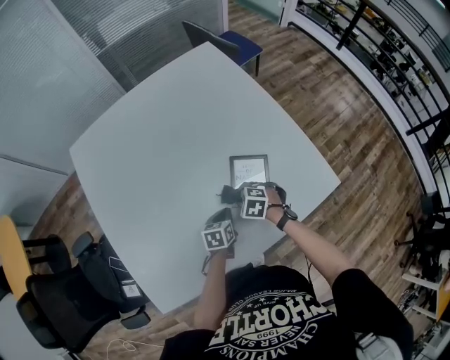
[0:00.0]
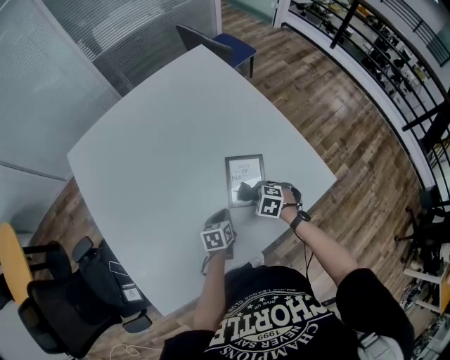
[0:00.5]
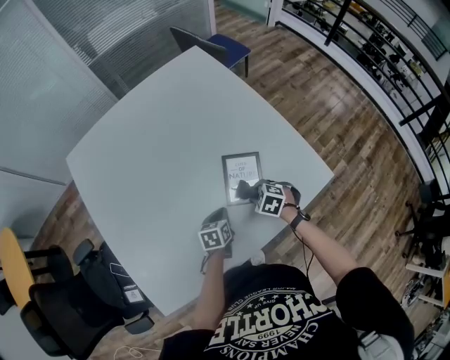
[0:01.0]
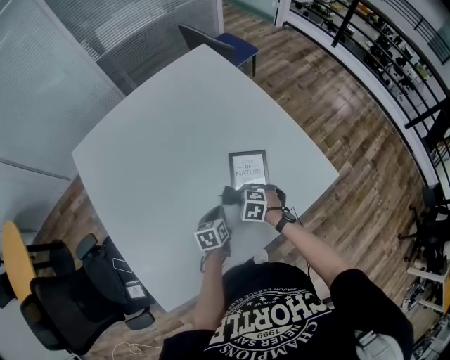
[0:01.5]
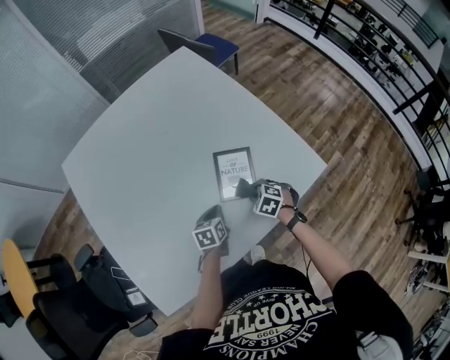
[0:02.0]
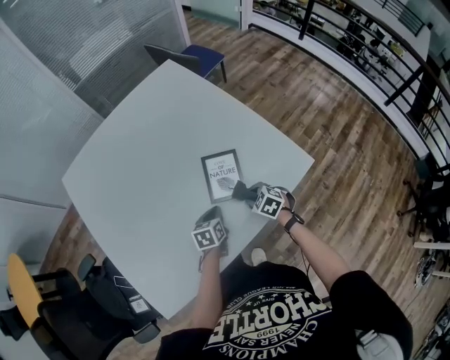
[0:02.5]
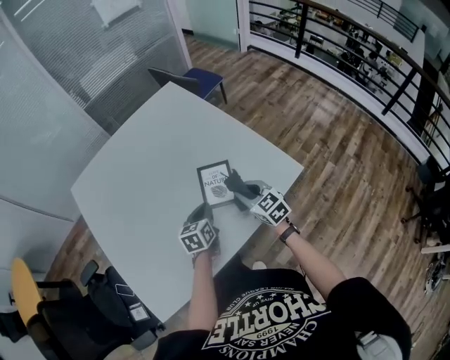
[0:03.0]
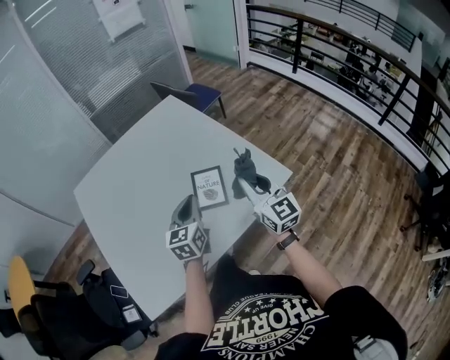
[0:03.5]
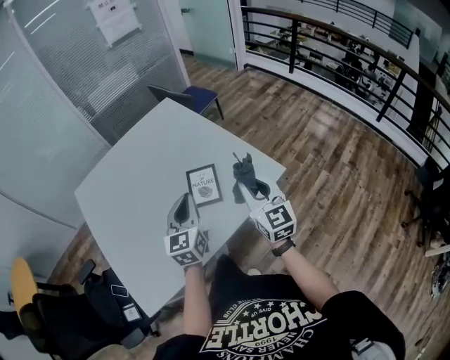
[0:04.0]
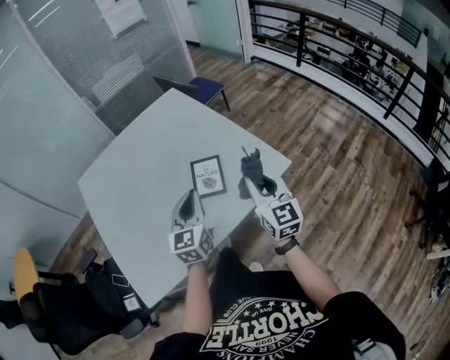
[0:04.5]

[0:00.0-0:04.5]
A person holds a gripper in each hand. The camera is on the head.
0:00.0 to 0:02.0: The right gripper goes left and right, some 10 cm each way, reversing 2 times.
0:02.0 to 0:04.5: The left gripper heads upward and backward, covering some 35 cm, and angles its fingers upward, by approximately 40 degrees; the right gripper shifts about 40 cm upward, backward and to the right, and tilts its fingers roughly 70 degrees upward.

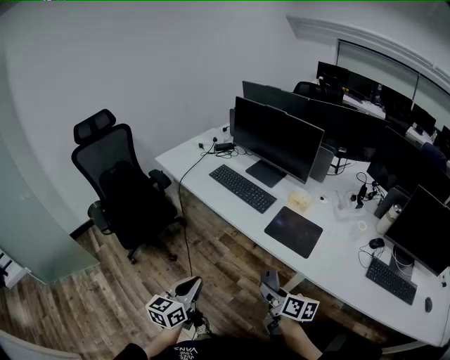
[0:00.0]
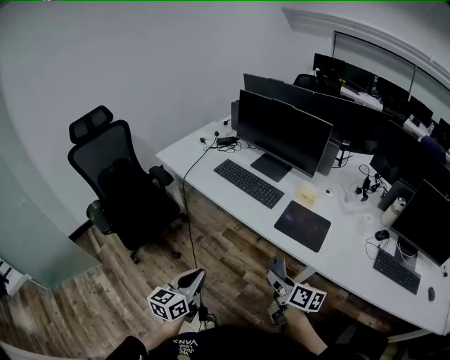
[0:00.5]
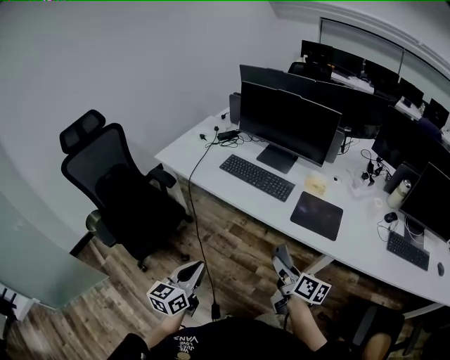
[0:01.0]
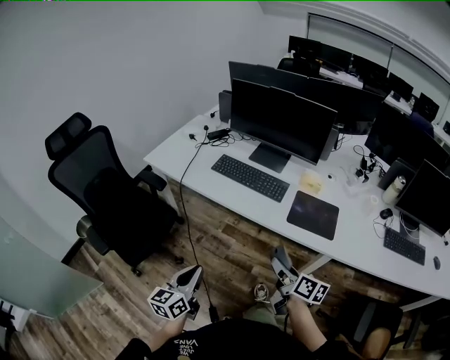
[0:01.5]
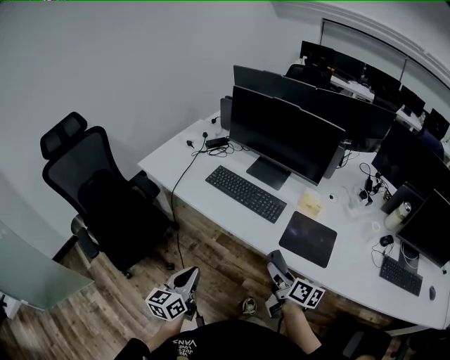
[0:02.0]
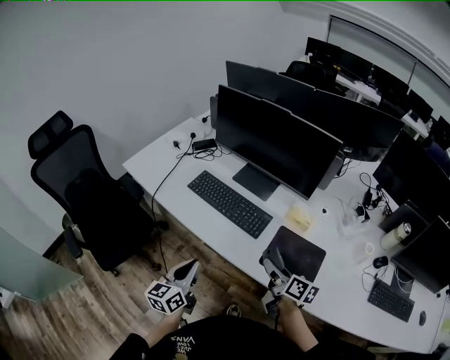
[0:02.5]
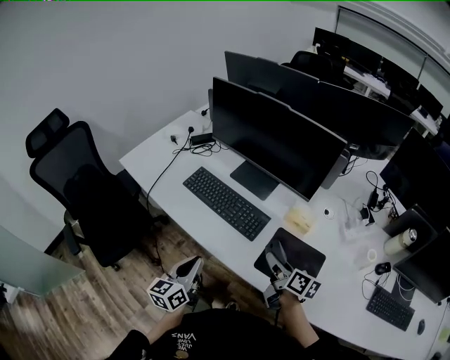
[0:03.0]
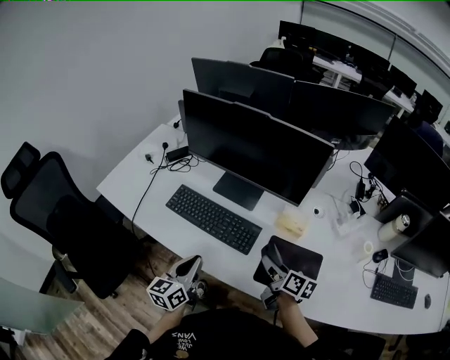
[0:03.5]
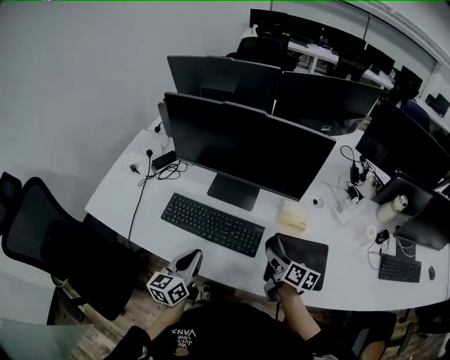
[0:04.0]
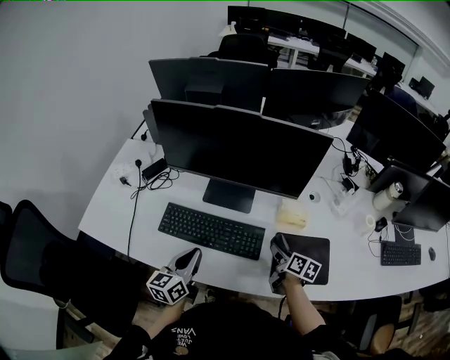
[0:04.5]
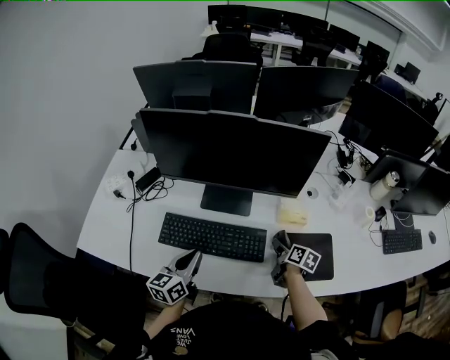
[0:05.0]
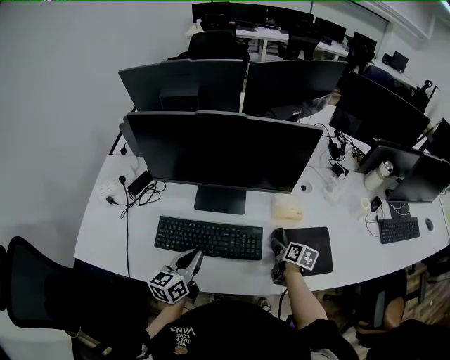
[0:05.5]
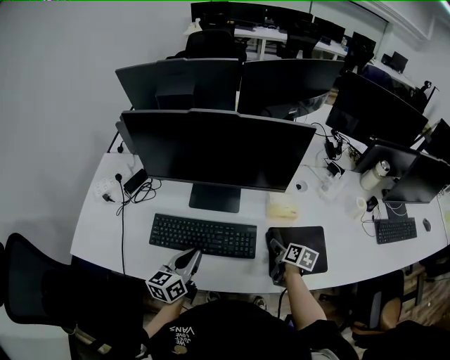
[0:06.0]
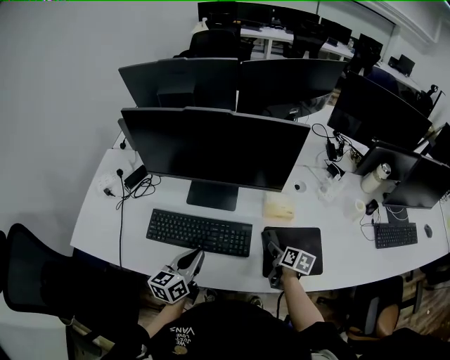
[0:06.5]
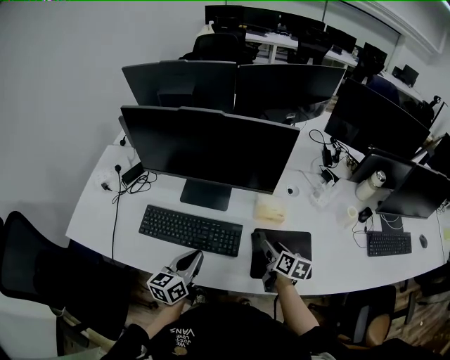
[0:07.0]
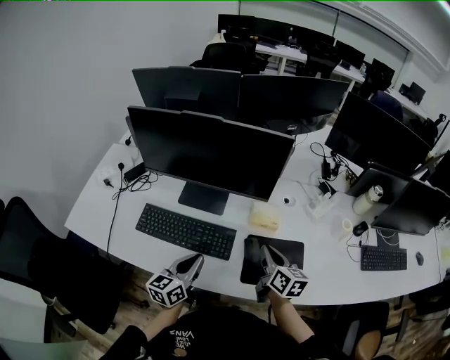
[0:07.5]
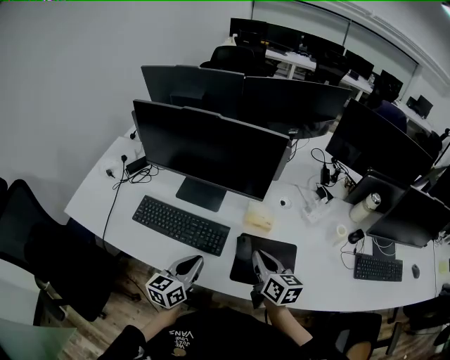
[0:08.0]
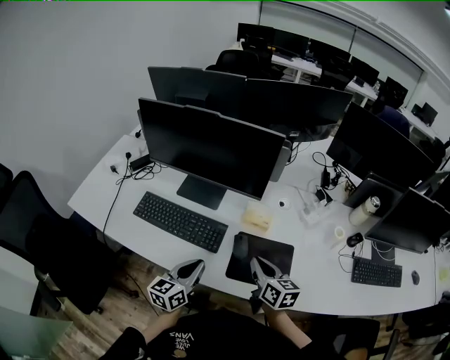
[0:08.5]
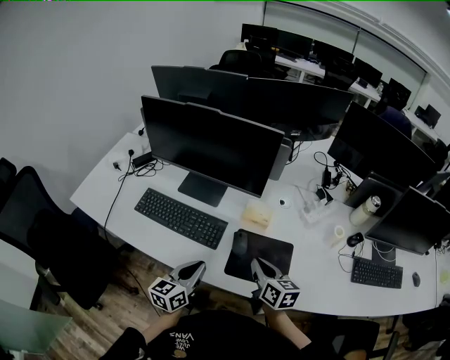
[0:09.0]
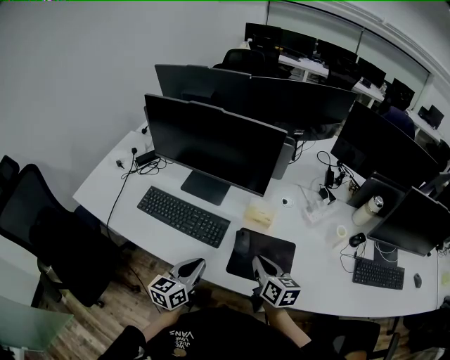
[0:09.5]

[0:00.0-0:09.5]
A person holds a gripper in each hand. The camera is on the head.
0:00.0 to 0:02.0: The left gripper is displaced forward and to the left by some 20 cm, while the right gripper moves forward, roughly 15 cm.
0:02.0 to 0:04.0: The left gripper shifts some 30 cm forward; the right gripper goes approximately 25 cm forward and to the right.
0:04.0 to 0:05.5: The right gripper is displaced downward by some 10 cm, and turns by about 30 degrees, while the left gripper heads forward, covering approximately 10 cm.
0:05.5 to 0:07.5: The left gripper heads to the right, covering some 10 cm. The right gripper moves upward, roughly 15 cm, rotates some 30 degrees, and closes up.
0:07.5 to 0:09.5: The left gripper shifts some 10 cm backward and to the right. Meanwhile the right gripper shifts some 5 cm backward.

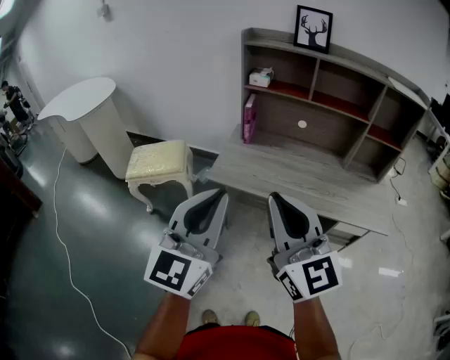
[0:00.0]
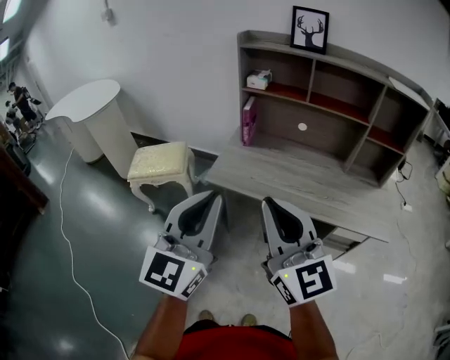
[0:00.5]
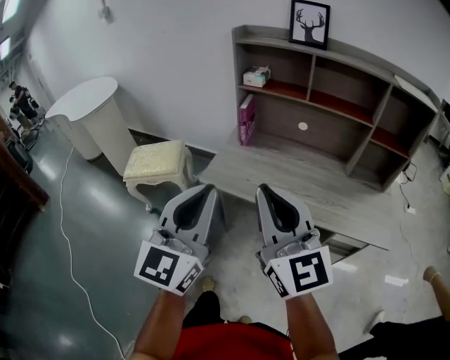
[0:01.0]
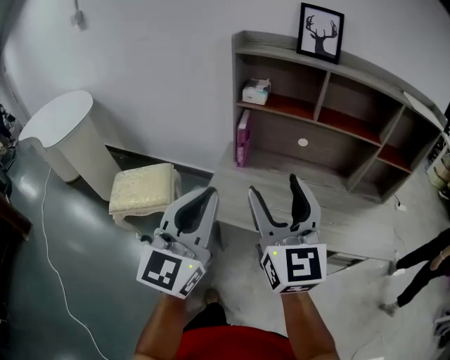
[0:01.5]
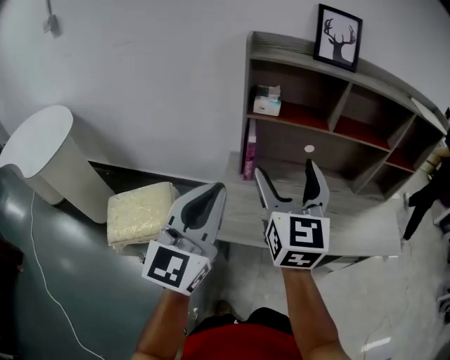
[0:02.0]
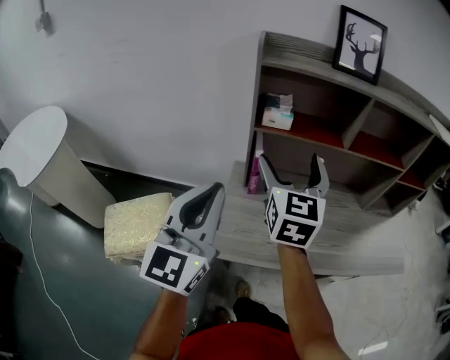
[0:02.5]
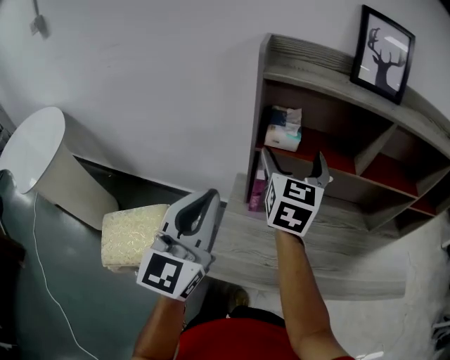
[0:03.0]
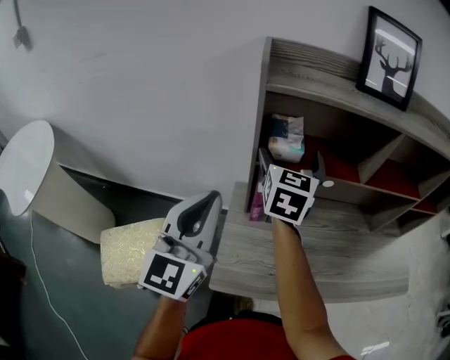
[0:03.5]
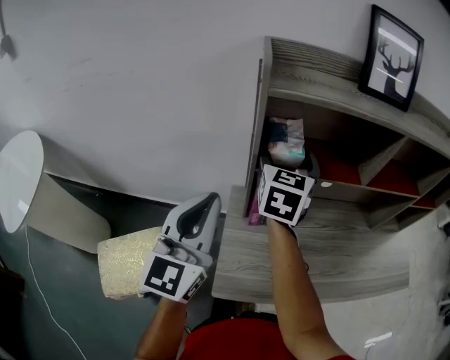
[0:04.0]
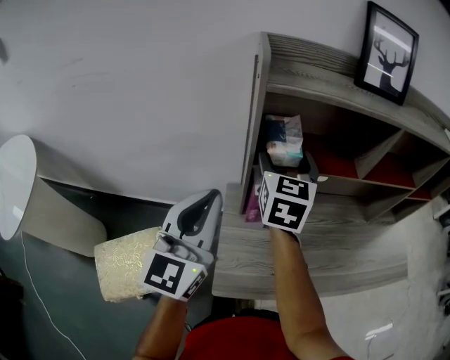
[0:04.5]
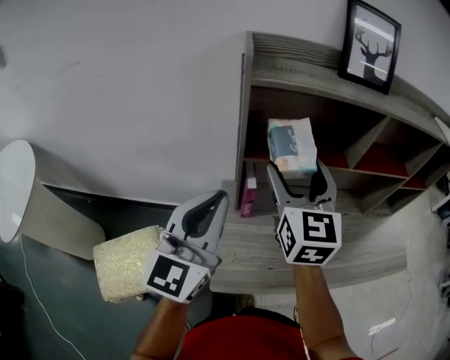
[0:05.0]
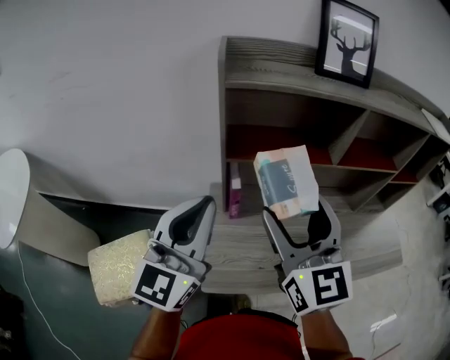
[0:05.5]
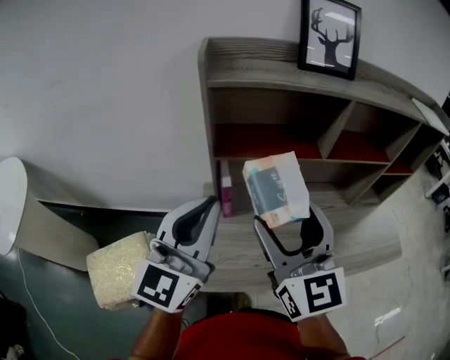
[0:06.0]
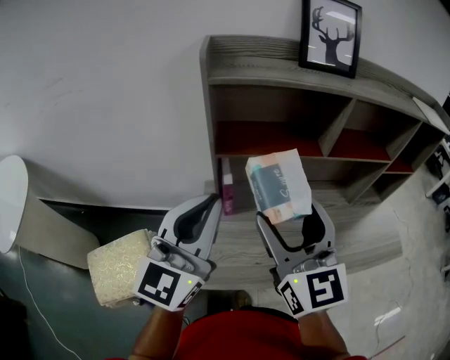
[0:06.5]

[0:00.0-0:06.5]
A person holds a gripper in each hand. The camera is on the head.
0:00.0 to 0:02.0: Both grippers travel together forward, some 35 cm. The right gripper turns by roughly 30 degrees, and opens its fingers.
0:02.0 to 0:04.5: Both grippers move forward, some 25 cm. The right gripper rotates about 20 degrees.
0:04.5 to 0:06.5: The right gripper goes about 20 cm backward and to the right, and rotates some 20 degrees, while the left gripper goes approximately 10 cm to the right.

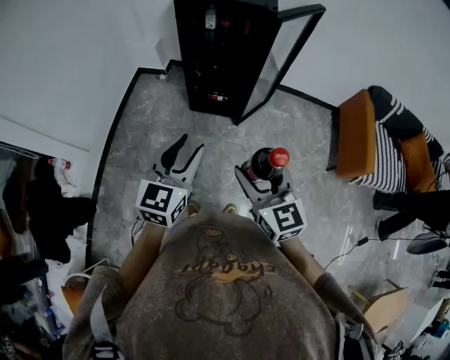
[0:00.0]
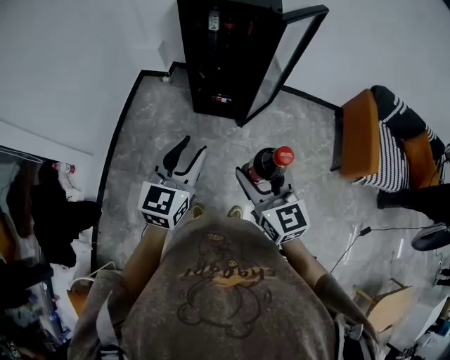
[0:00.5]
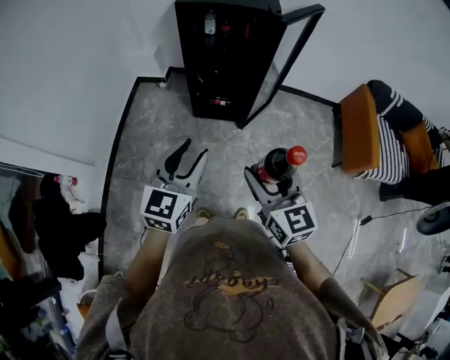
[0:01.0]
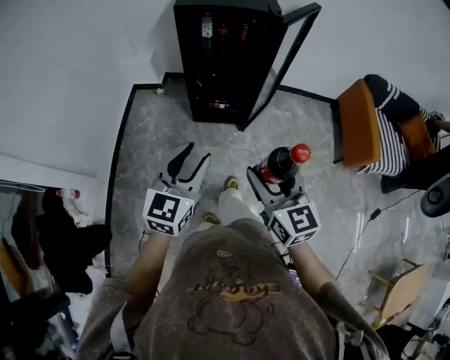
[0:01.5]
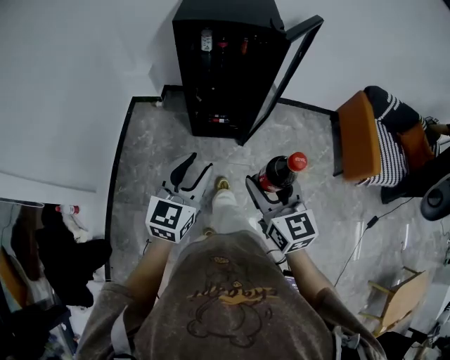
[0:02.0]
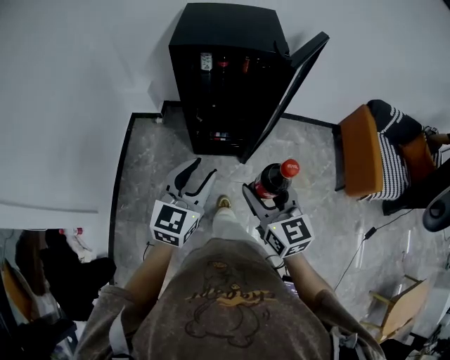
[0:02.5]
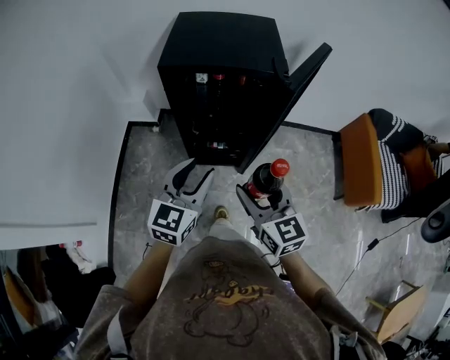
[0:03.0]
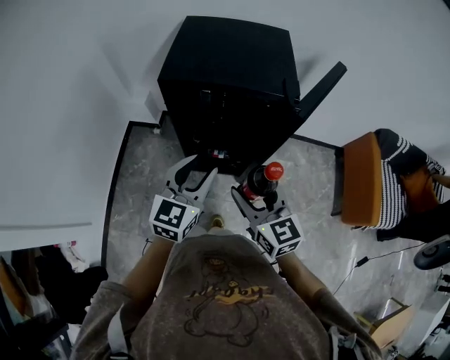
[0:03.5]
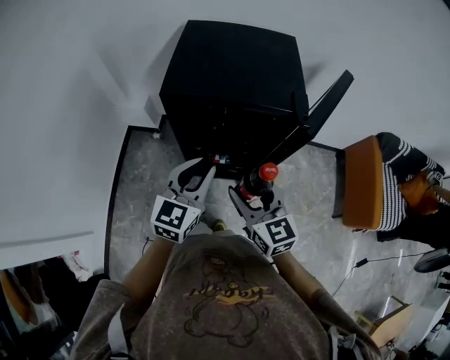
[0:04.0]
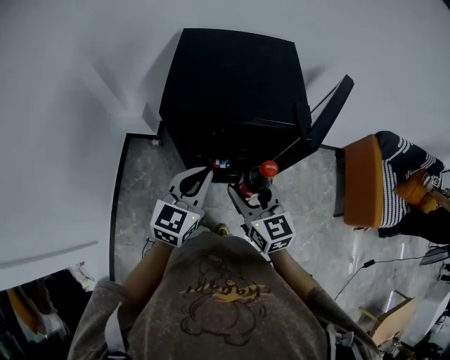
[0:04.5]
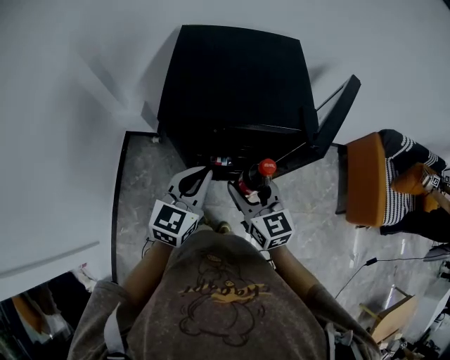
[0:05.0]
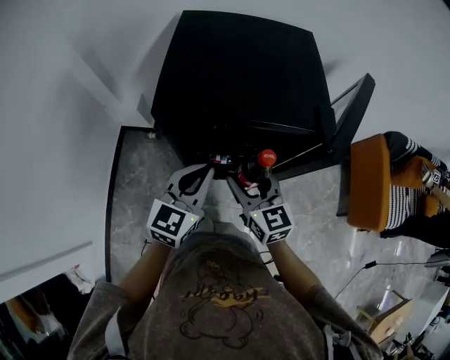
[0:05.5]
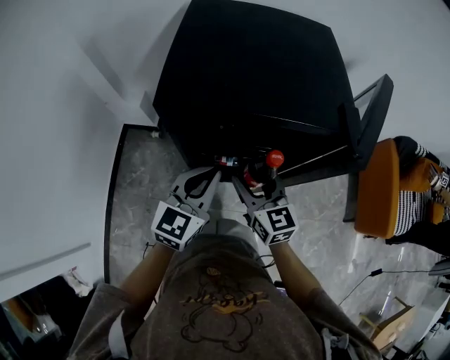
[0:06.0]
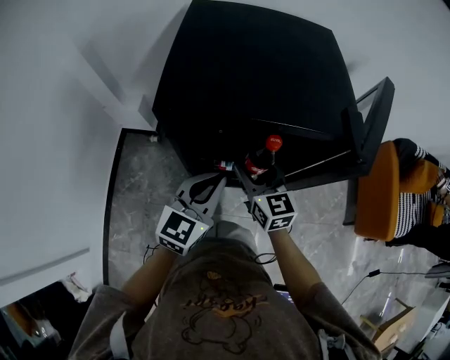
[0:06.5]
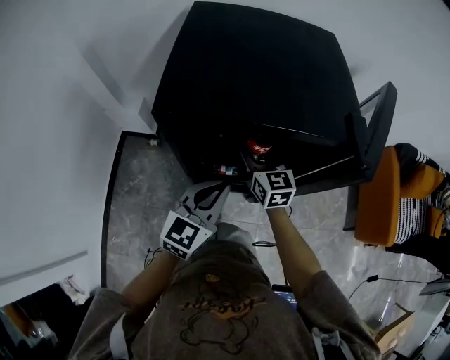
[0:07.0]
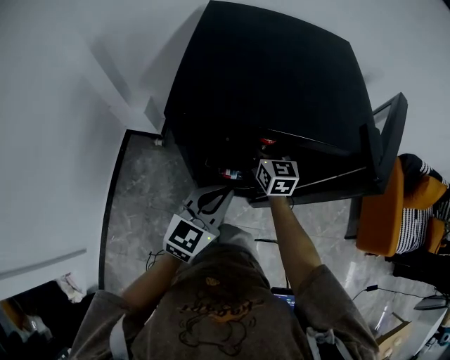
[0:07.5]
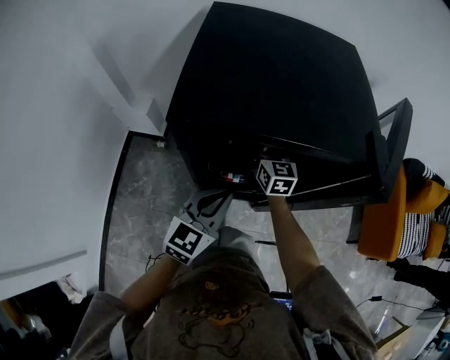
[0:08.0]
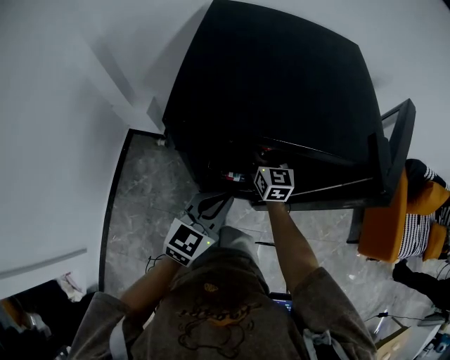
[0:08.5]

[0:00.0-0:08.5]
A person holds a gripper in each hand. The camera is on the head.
0:00.0 to 0:02.0: The grippers both shift forward and to the left by about 10 cm.
0:02.0 to 0:04.0: The two grippers go approximately 30 cm forward. The left gripper closes up.
0:04.0 to 0:06.5: The right gripper shifts roughly 20 cm forward and downward, while the left gripper heads downward and forward, covering approximately 15 cm.
0:06.5 to 0:08.5: The left gripper heads downward, covering approximately 5 cm, while the right gripper goes about 15 cm forward and downward.
